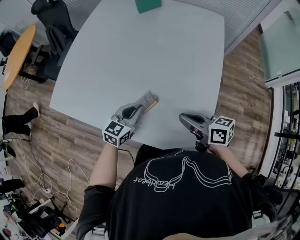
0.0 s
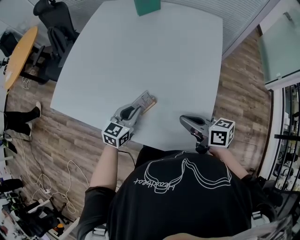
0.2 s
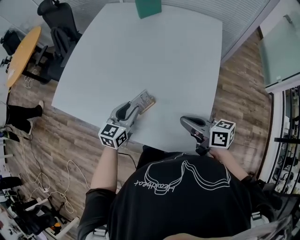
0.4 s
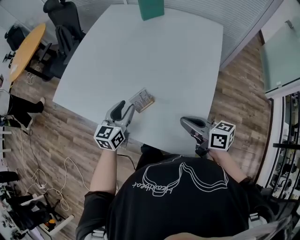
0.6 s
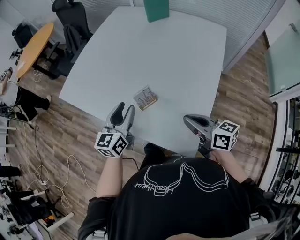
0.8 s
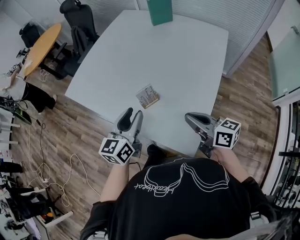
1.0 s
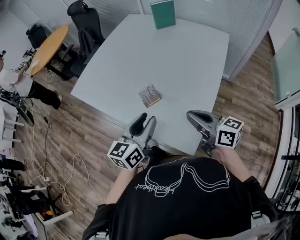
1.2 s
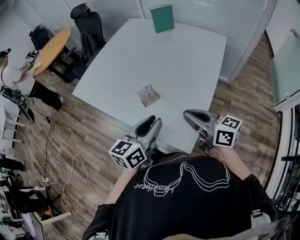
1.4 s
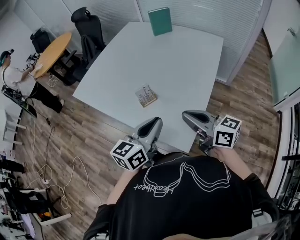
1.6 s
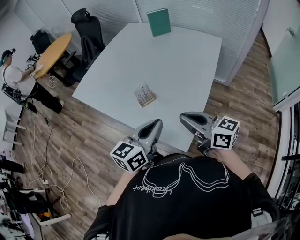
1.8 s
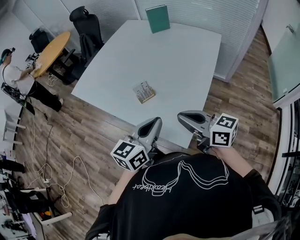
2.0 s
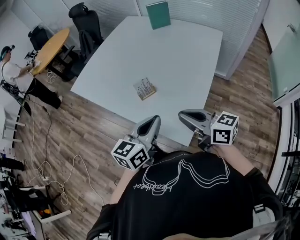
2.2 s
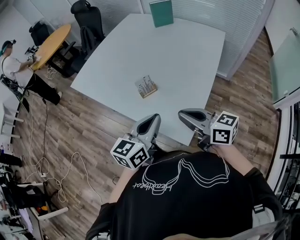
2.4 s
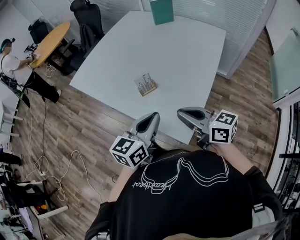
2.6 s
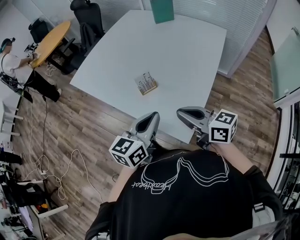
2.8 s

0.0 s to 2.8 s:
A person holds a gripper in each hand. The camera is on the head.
0.0 to 1.4 s: The left gripper shifts about 25 cm backward and upward, turns by roughly 30 degrees, and opens up; the right gripper shifts some 15 cm upward and backward, and turns by some 20 degrees.
1.4 to 2.8 s: The left gripper closes up.

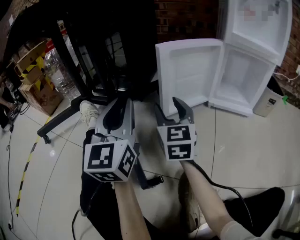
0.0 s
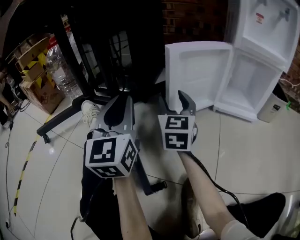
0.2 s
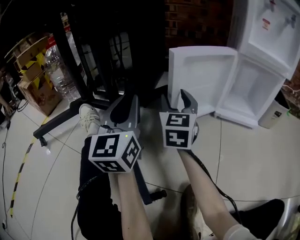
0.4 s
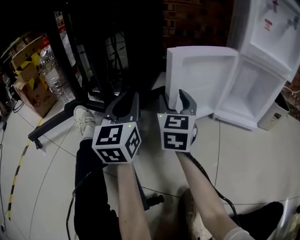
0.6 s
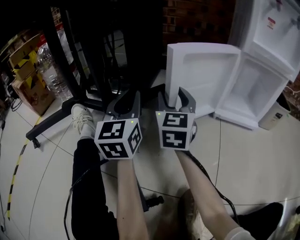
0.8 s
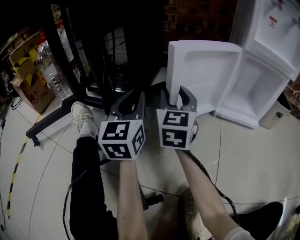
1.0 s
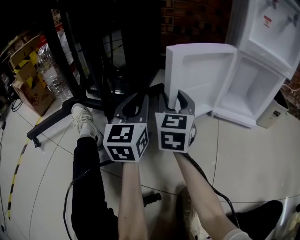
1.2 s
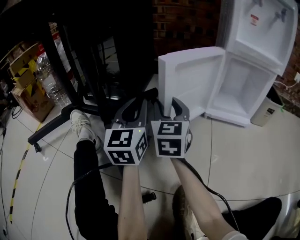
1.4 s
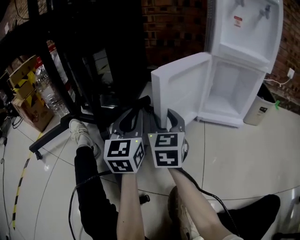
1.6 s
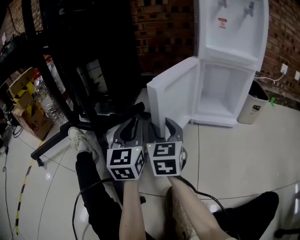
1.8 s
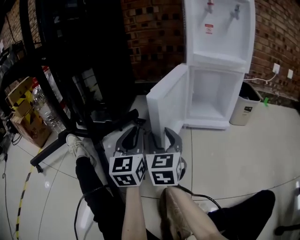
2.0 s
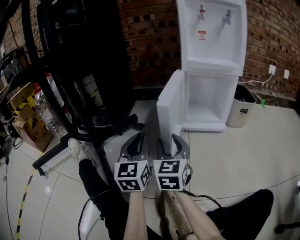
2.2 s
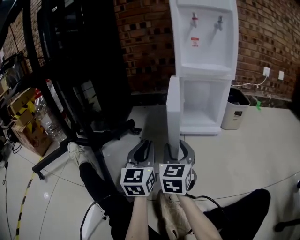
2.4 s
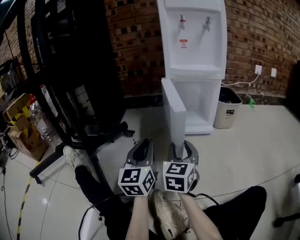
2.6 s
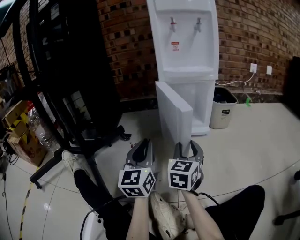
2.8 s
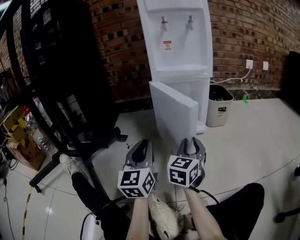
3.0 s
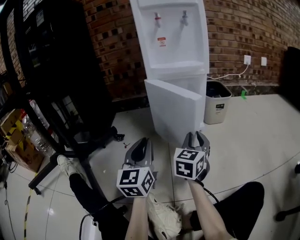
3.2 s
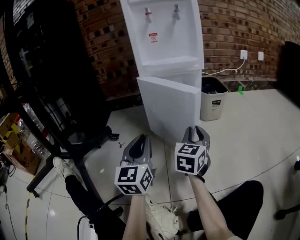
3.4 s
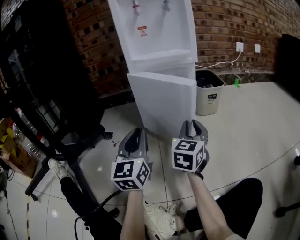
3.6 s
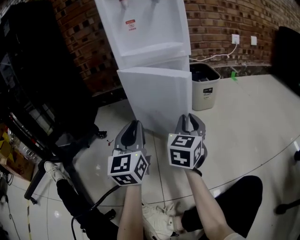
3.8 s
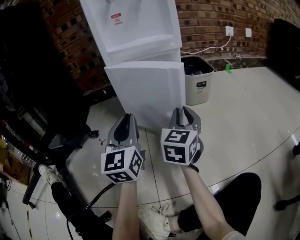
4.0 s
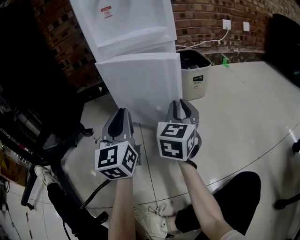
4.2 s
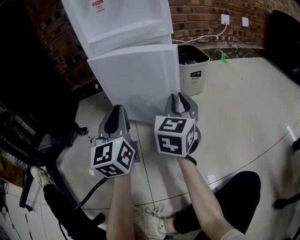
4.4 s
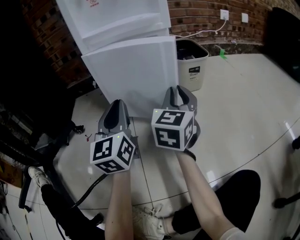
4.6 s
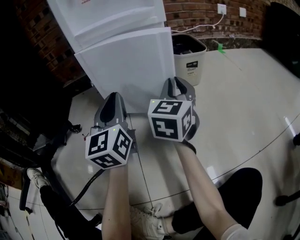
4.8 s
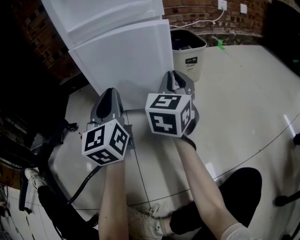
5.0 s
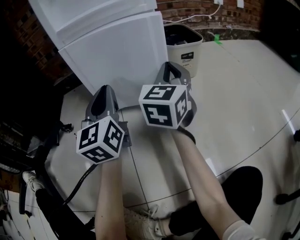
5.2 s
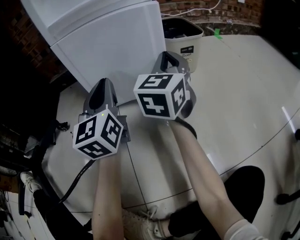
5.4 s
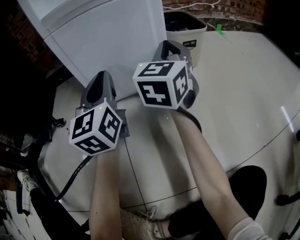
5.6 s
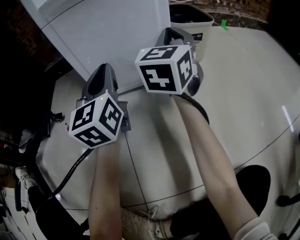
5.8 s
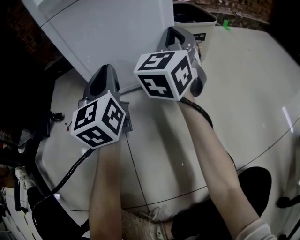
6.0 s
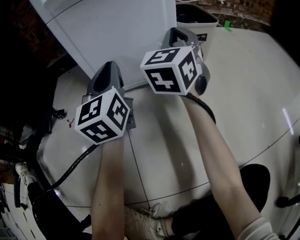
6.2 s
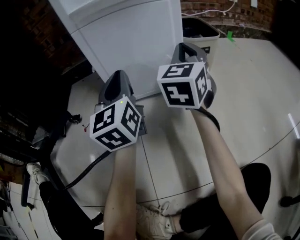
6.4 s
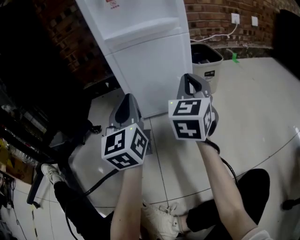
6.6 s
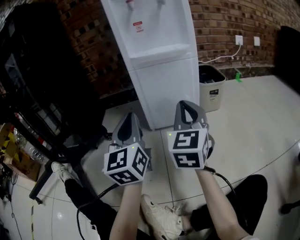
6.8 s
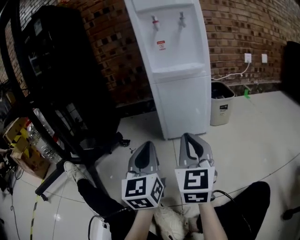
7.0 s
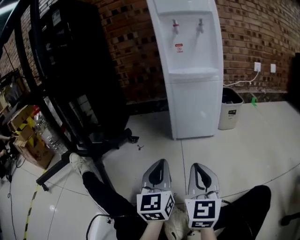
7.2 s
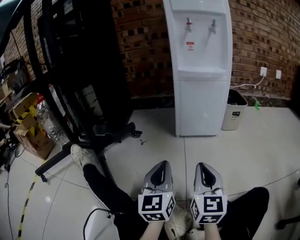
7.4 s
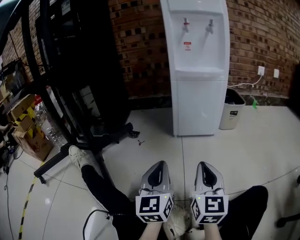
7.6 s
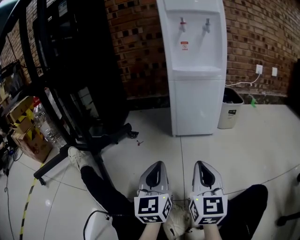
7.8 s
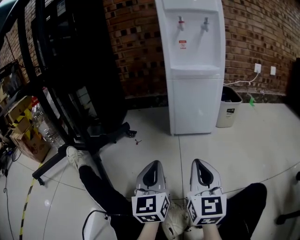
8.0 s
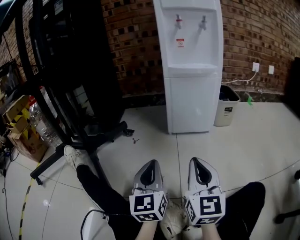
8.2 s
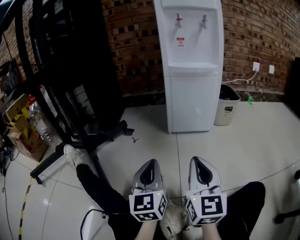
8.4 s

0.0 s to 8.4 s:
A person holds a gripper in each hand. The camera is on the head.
0.0 to 1.4 s: The right gripper heads forward, covering some 5 cm; the left gripper moves forward and downward, some 10 cm.
1.4 to 2.8 s: The right gripper travels to the right by some 30 cm, and turns by roughly 30 degrees; the left gripper moves to the right and backward, roughly 20 cm.
2.8 to 4.2 s: The two grippers go about 15 cm forward and to the right. The right gripper closes.
4.2 to 5.6 s: The two grippers go roughly 10 cm forward.
5.6 to 7.0 s: The left gripper travels backward by about 25 cm; the right gripper is displaced backward and to the left by approximately 30 cm, and changes its angle by about 30 degrees.
7.0 to 8.4 s: The left gripper travels downward and backward by about 10 cm. Meanwhile the right gripper goes about 10 cm backward.

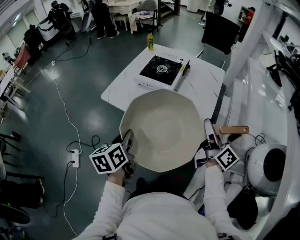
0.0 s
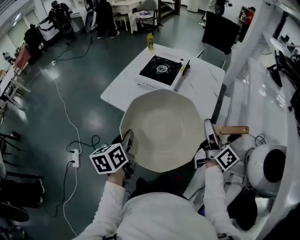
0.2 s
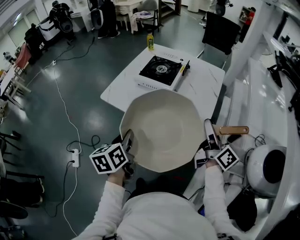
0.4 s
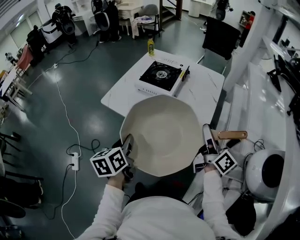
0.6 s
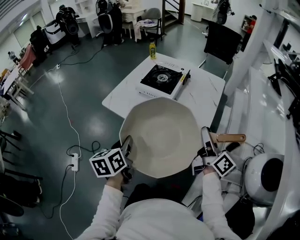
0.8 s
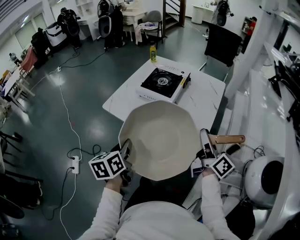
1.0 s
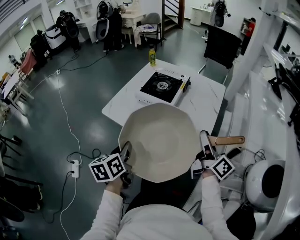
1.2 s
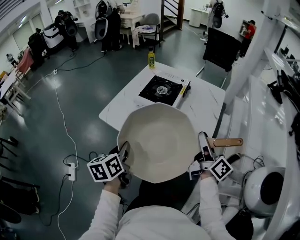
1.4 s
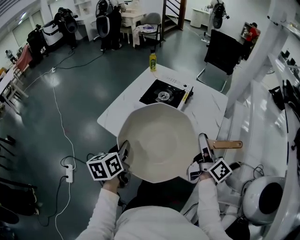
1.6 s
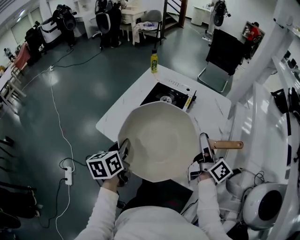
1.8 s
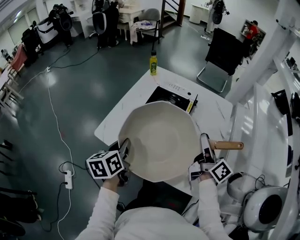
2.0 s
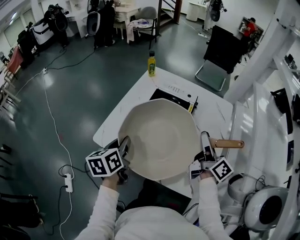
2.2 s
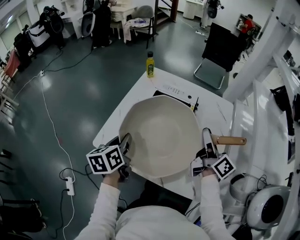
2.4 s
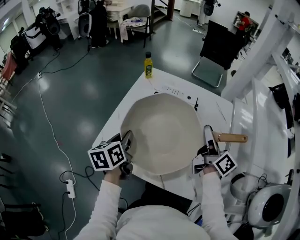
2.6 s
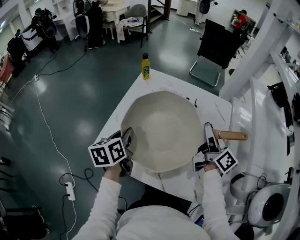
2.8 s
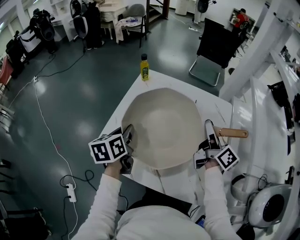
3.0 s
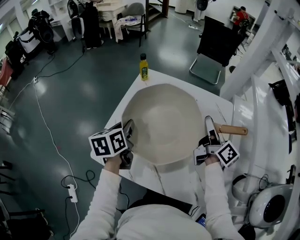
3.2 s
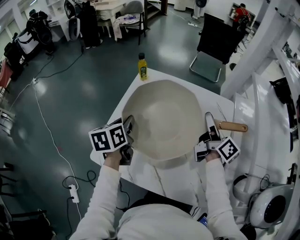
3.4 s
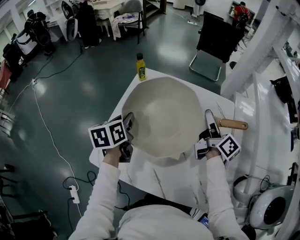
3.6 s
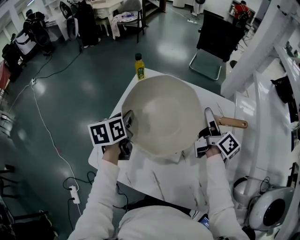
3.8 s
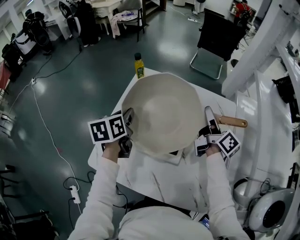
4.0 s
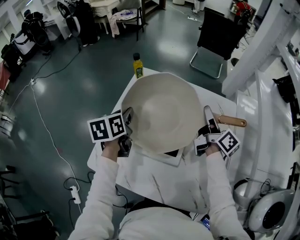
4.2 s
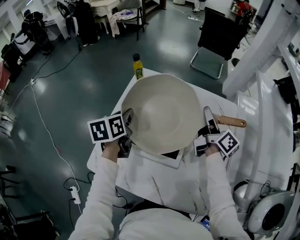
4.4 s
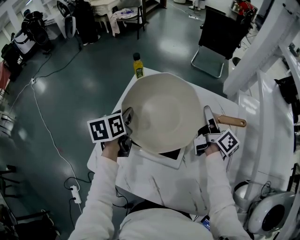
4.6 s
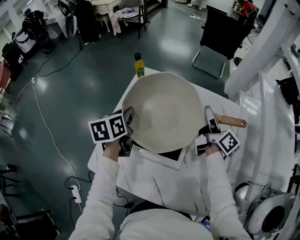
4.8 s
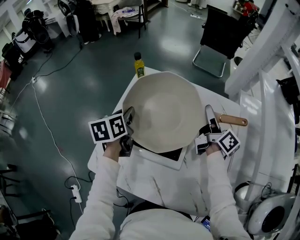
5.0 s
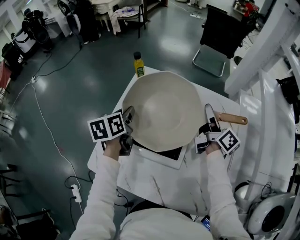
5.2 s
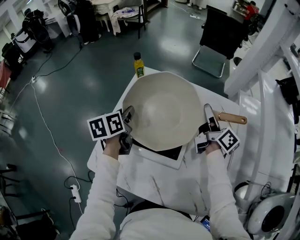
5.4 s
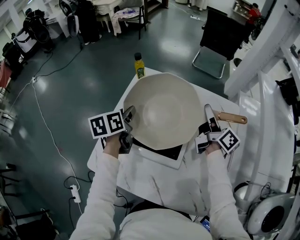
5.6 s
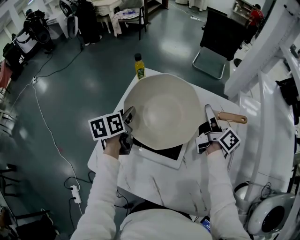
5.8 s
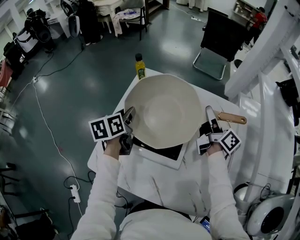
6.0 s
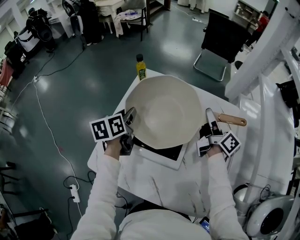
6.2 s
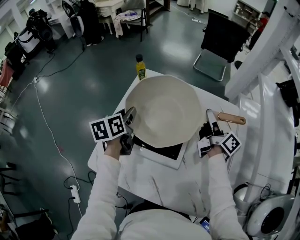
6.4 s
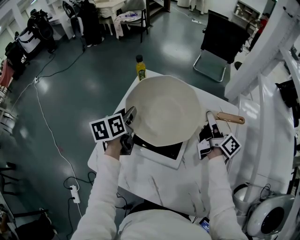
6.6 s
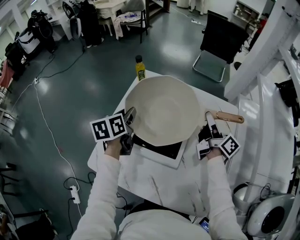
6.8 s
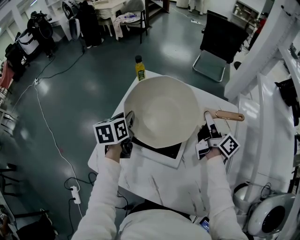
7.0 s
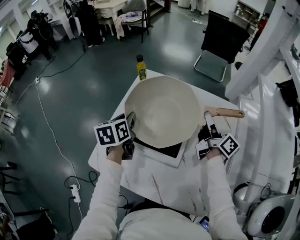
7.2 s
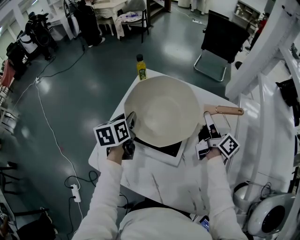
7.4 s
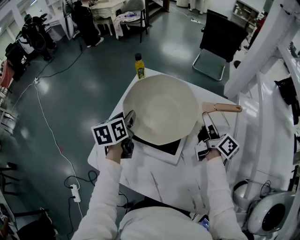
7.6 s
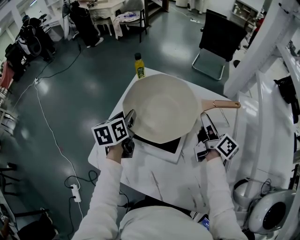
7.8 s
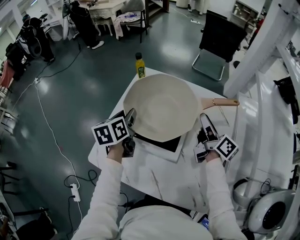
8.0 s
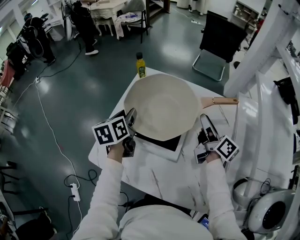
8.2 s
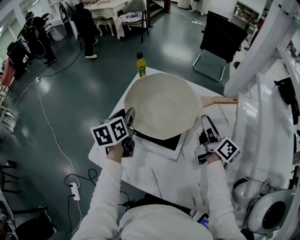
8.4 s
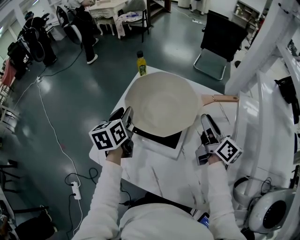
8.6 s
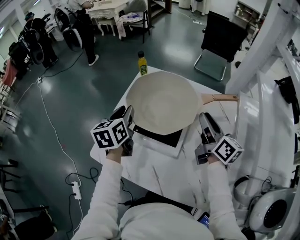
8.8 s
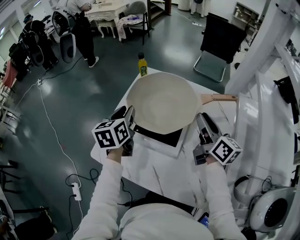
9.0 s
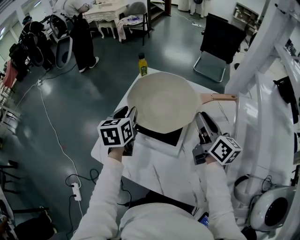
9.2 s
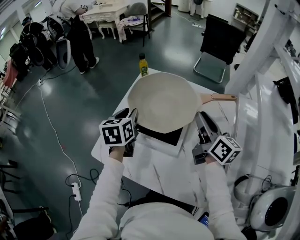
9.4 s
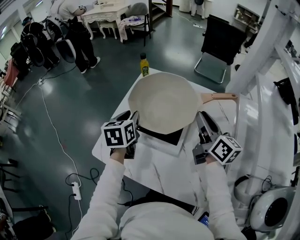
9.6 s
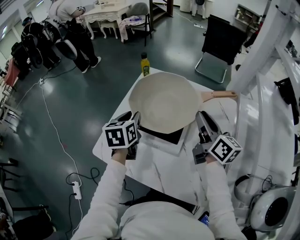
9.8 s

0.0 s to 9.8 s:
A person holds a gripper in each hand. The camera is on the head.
0.0 to 1.4 s: The two grippers go about 5 cm forward.
1.4 to 2.8 s: Both grippers move forward, some 25 cm.
2.8 to 4.2 s: The grippers both shift forward by some 15 cm.
4.2 to 7.0 s: The grippers stay close to where they were, moving slightly.
7.0 to 8.4 s: The right gripper travels backward by approximately 5 cm.
8.4 to 9.8 s: The right gripper goes approximately 10 cm upward and to the left.

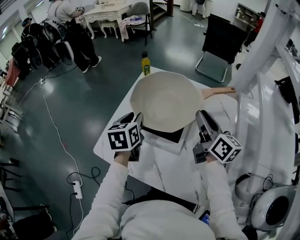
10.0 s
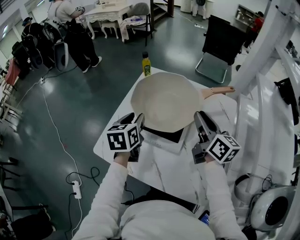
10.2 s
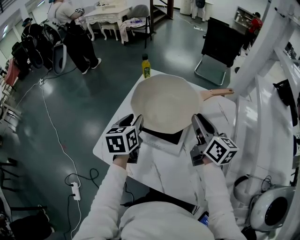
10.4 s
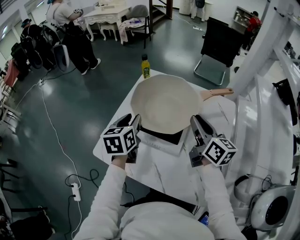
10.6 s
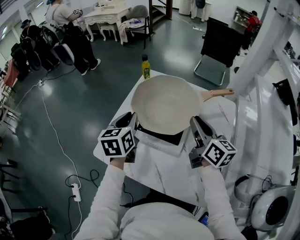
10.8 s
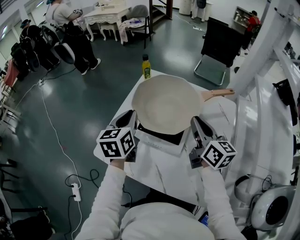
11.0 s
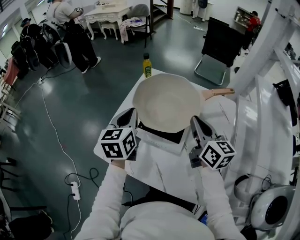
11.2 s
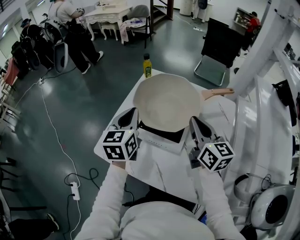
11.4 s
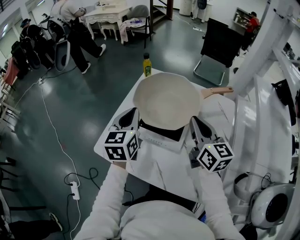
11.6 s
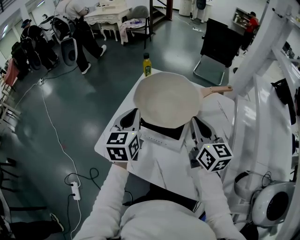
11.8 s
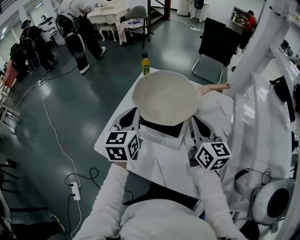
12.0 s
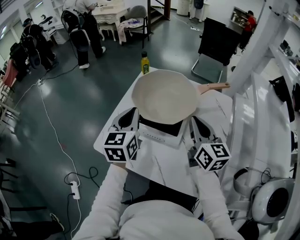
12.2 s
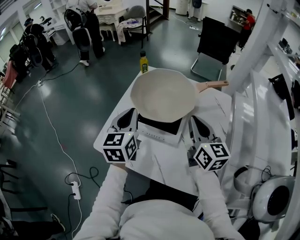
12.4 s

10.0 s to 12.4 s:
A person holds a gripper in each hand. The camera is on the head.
10.0 to 11.2 s: The right gripper closes. Meanwhile the left gripper travels upward by some 5 cm, and closes.
11.2 to 12.4 s: Both grippers move backward, approximately 5 cm.
